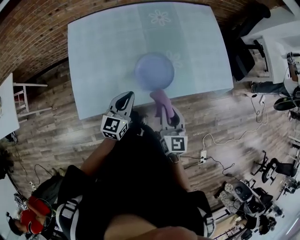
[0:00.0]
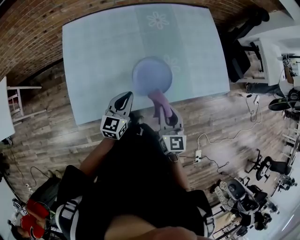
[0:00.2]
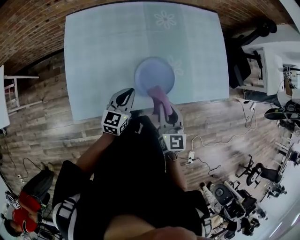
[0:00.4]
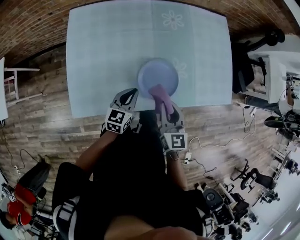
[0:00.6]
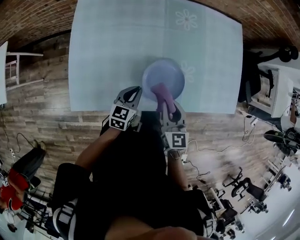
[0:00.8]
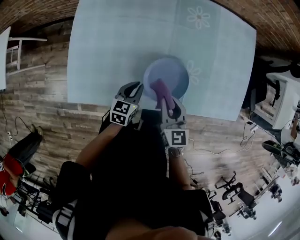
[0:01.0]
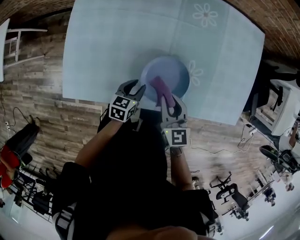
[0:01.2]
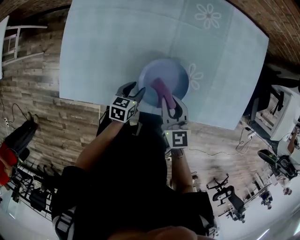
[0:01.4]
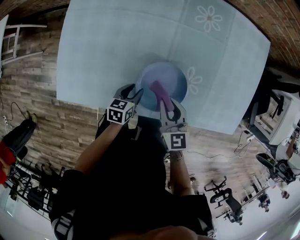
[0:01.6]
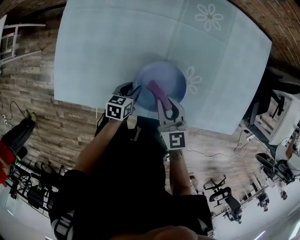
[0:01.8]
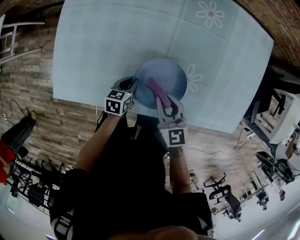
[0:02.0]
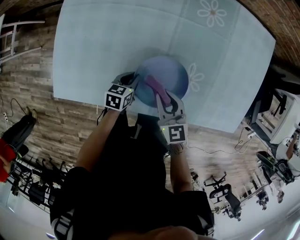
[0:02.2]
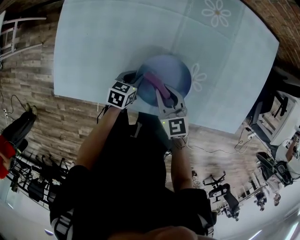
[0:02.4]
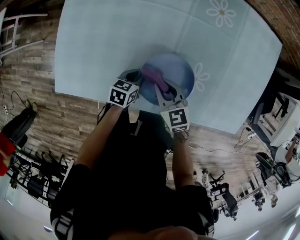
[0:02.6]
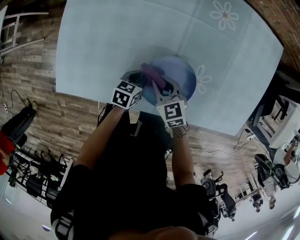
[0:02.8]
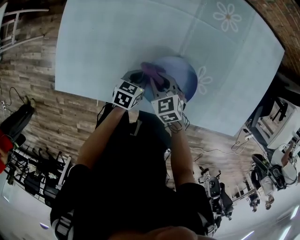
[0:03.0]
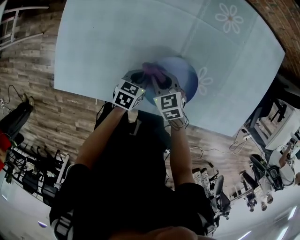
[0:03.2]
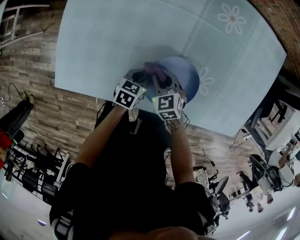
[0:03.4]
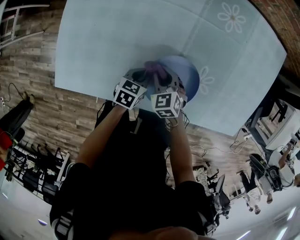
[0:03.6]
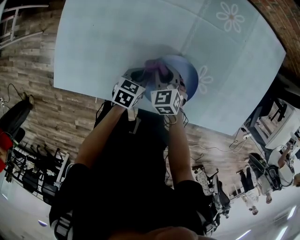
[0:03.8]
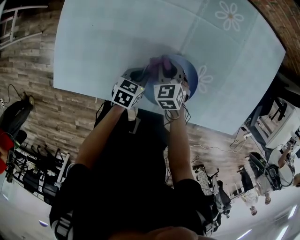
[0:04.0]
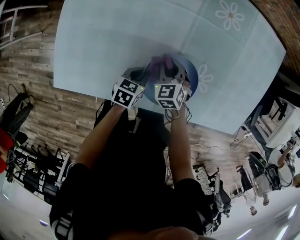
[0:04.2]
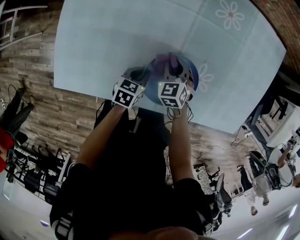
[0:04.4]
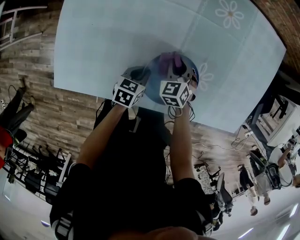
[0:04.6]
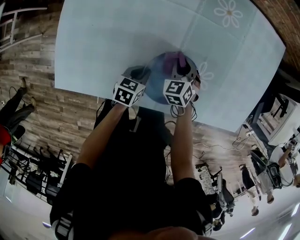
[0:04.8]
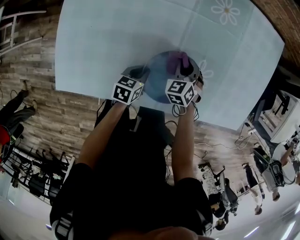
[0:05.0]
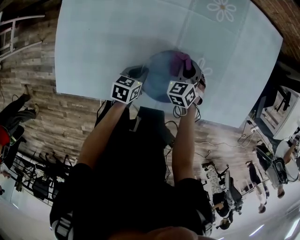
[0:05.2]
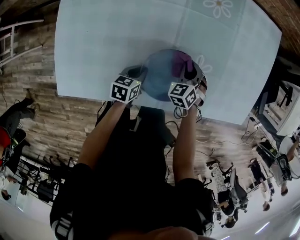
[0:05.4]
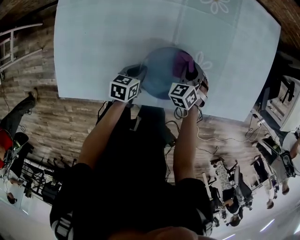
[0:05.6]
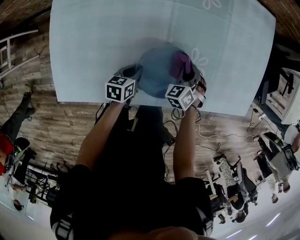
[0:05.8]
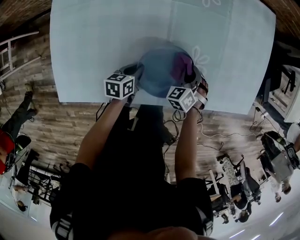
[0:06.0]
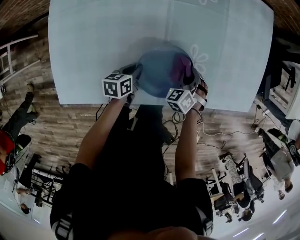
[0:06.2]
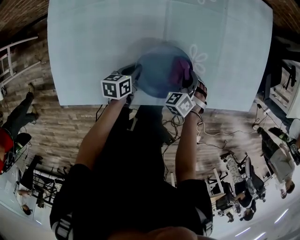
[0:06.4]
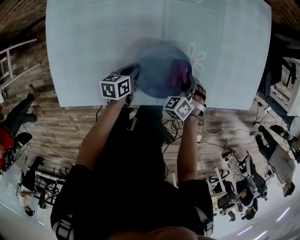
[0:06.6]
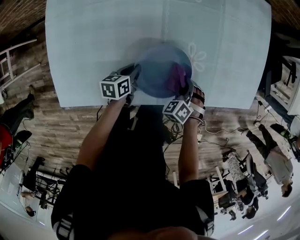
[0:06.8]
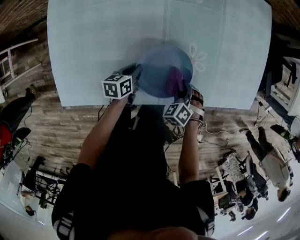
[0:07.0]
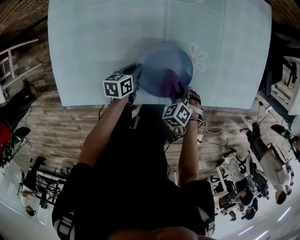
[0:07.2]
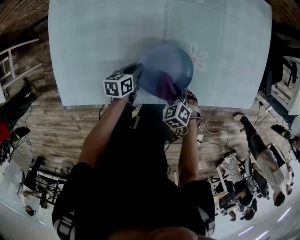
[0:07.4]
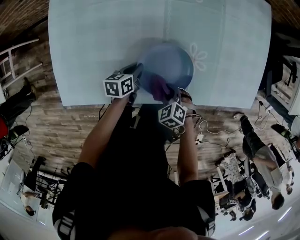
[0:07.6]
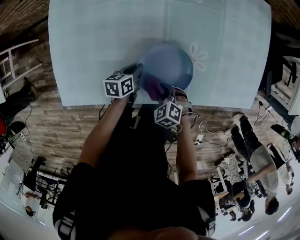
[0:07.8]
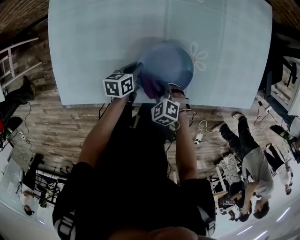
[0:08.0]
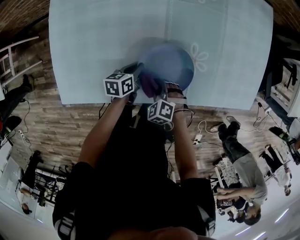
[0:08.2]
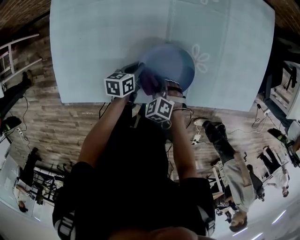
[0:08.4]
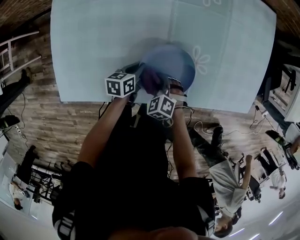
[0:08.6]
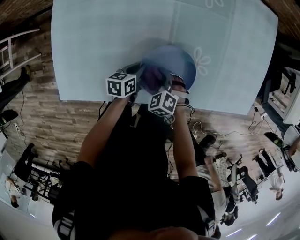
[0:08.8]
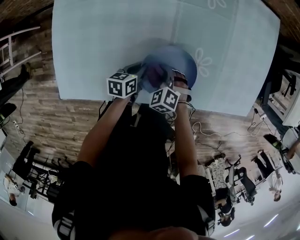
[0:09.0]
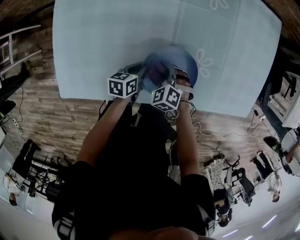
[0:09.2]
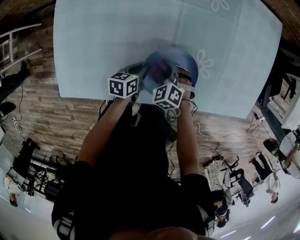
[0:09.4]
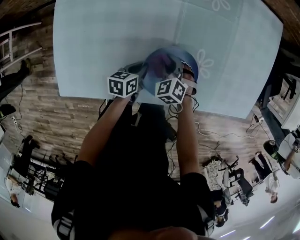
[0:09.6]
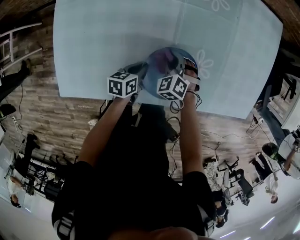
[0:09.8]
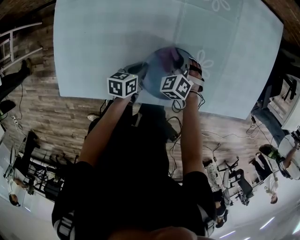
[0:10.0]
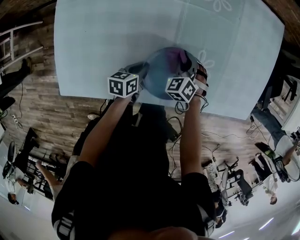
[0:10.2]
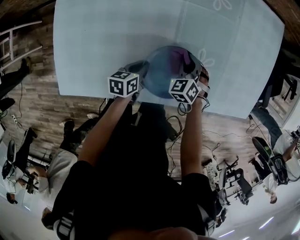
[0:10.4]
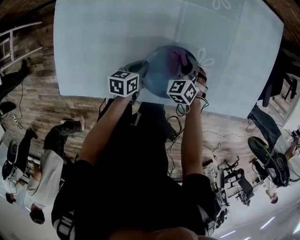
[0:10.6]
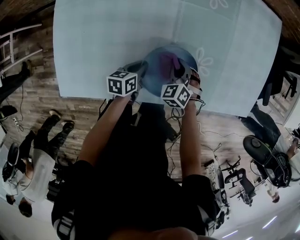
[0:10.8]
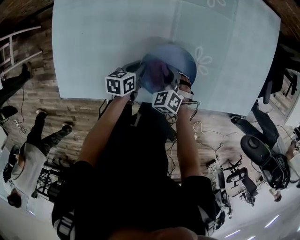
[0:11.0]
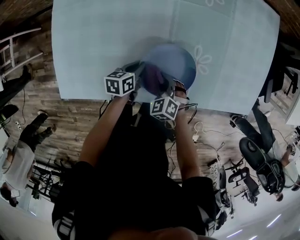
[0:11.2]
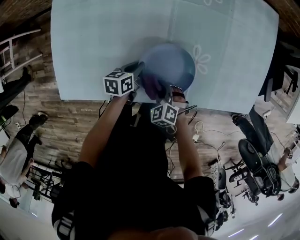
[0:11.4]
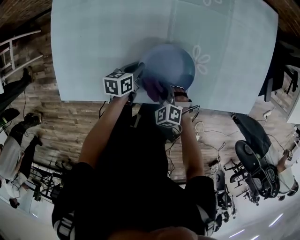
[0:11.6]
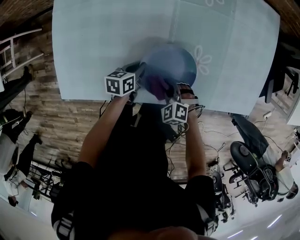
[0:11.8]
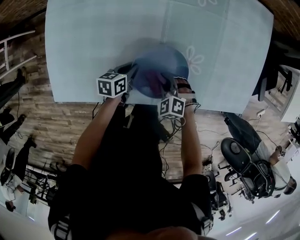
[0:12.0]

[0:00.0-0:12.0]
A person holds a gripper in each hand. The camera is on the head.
0:00.0 to 0:01.6: The right gripper goes some 25 cm forward and downward, and swivels roughly 30 degrees; the left gripper goes approximately 30 cm downward and forward, tilts its fingers roughly 30 degrees downward, and opens its fingers.
0:01.6 to 0:03.0: The right gripper is displaced downward and to the left by approximately 15 cm, and rotates approximately 40 degrees. Meanwhile the left gripper shifts by approximately 5 cm, and closes.
0:03.0 to 0:04.4: The right gripper goes roughly 10 cm forward, and changes its angle by roughly 20 degrees.
0:04.4 to 0:06.0: The right gripper moves to the right, approximately 15 cm, and swivels roughly 30 degrees.
0:06.0 to 0:07.6: The right gripper moves roughly 15 cm, and changes its angle by approximately 30 degrees.
0:07.6 to 0:09.0: The right gripper shifts about 10 cm forward and to the left.
0:09.0 to 0:10.4: The right gripper shifts roughly 10 cm forward and to the right.
0:10.4 to 0:12.0: The right gripper moves backward, some 10 cm, and rotates some 30 degrees.

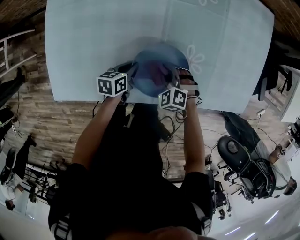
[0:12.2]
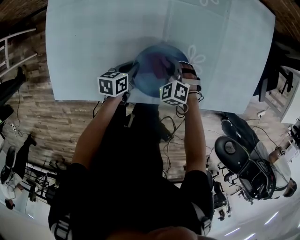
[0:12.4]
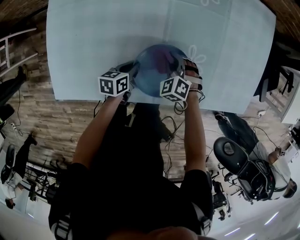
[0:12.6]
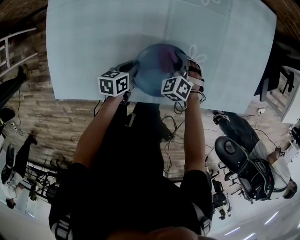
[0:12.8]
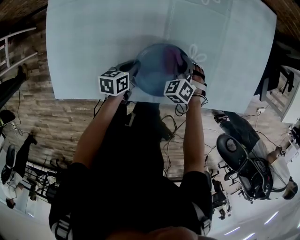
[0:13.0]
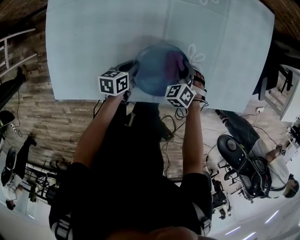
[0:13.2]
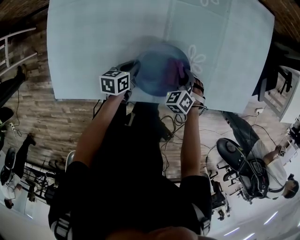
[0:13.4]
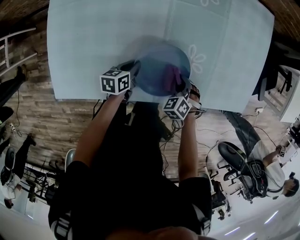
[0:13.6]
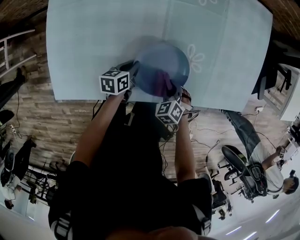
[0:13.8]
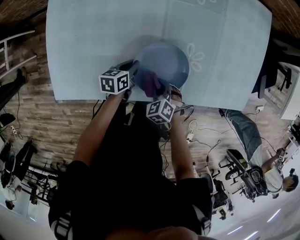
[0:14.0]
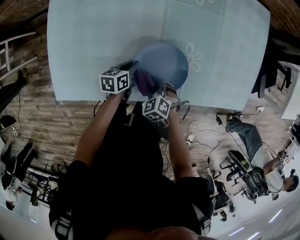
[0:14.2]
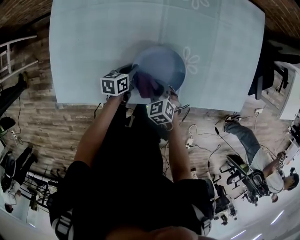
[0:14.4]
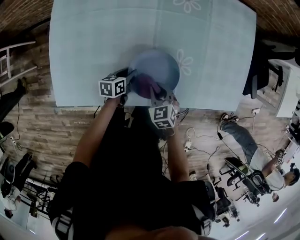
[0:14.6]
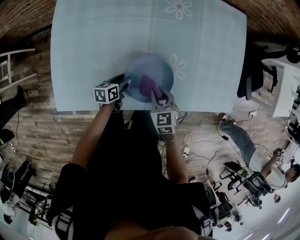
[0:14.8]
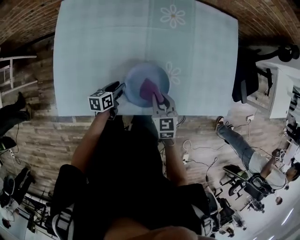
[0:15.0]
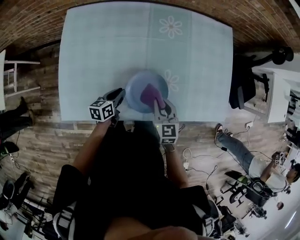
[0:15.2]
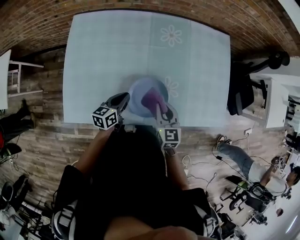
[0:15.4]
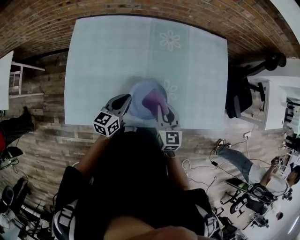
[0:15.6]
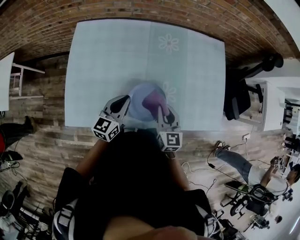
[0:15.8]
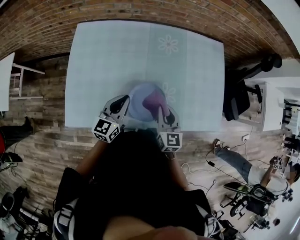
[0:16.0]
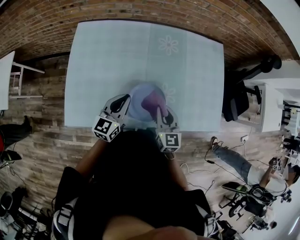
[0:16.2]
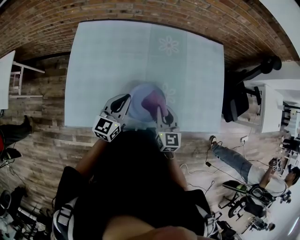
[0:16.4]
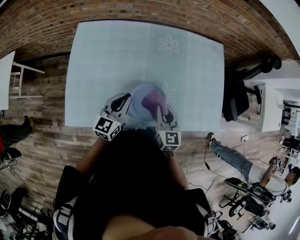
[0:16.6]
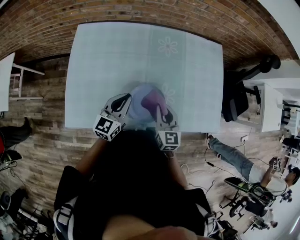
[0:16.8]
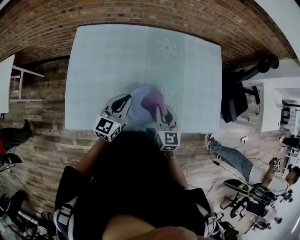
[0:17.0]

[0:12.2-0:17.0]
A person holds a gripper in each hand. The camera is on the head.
0:12.2 to 0:13.8: The right gripper shifts about 10 cm to the right and backward, and rotates some 30 degrees.
0:13.8 to 0:15.4: The grippers both shift upward by some 20 cm. The right gripper points its fingers some 40 degrees further upward. Meanwhile the left gripper turns by some 20 degrees, and opens, then closes once more.
0:15.4 to 0:17.0: The left gripper is displaced upward by about 15 cm, and swivels roughly 30 degrees; the right gripper moves upward, roughly 5 cm.

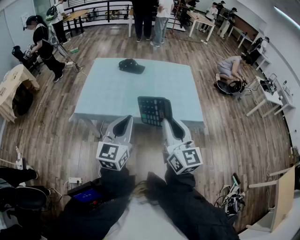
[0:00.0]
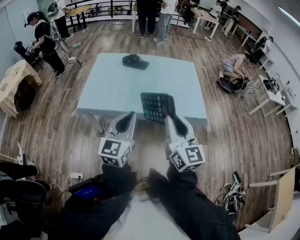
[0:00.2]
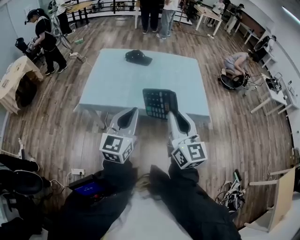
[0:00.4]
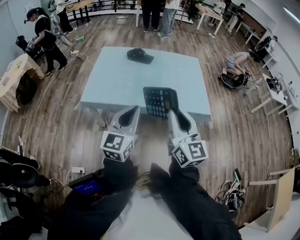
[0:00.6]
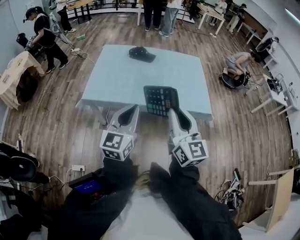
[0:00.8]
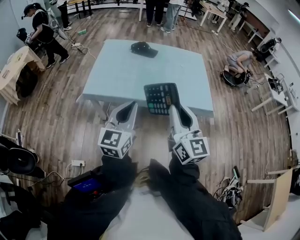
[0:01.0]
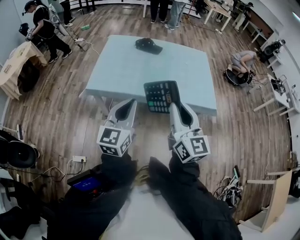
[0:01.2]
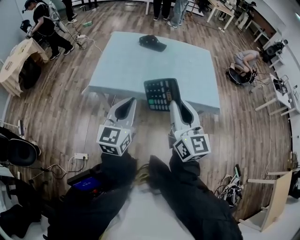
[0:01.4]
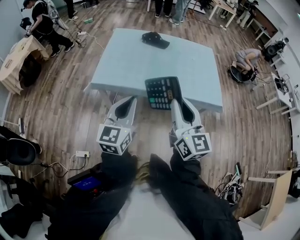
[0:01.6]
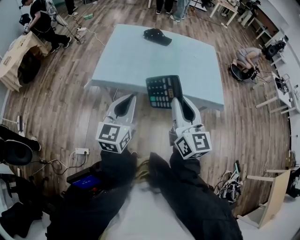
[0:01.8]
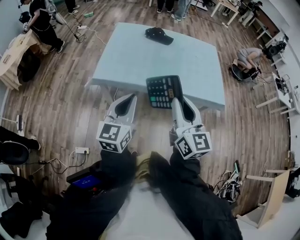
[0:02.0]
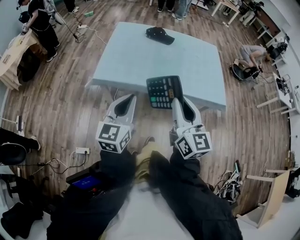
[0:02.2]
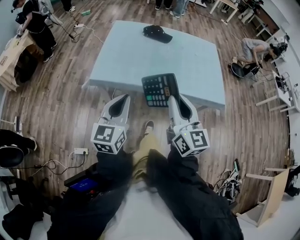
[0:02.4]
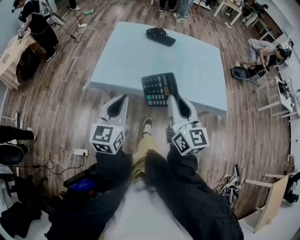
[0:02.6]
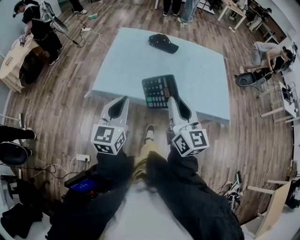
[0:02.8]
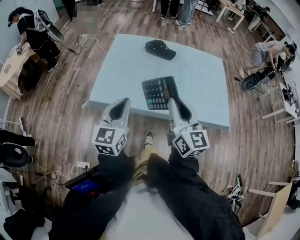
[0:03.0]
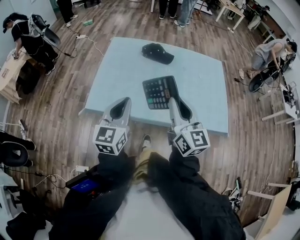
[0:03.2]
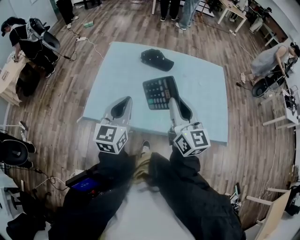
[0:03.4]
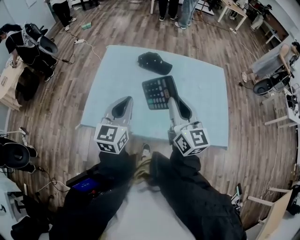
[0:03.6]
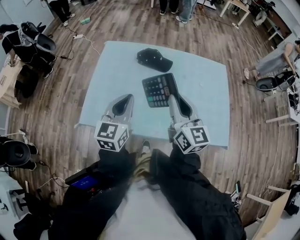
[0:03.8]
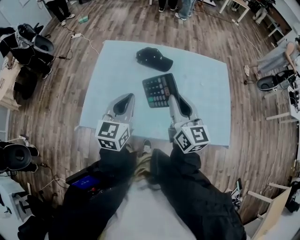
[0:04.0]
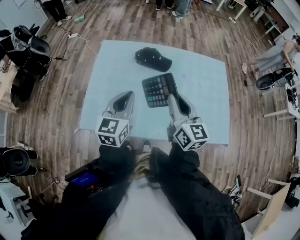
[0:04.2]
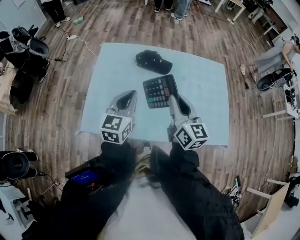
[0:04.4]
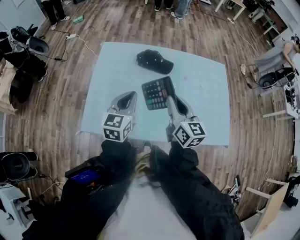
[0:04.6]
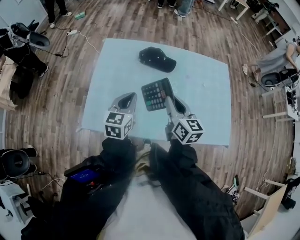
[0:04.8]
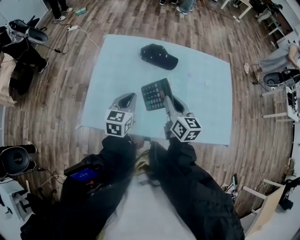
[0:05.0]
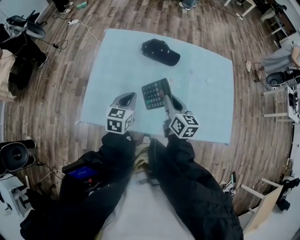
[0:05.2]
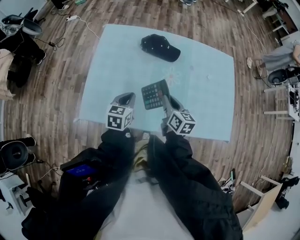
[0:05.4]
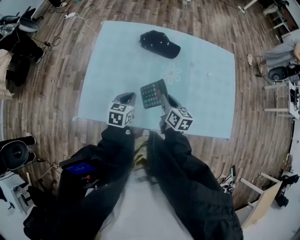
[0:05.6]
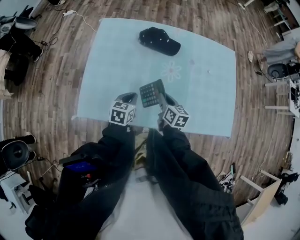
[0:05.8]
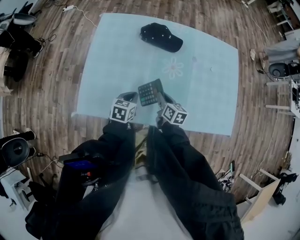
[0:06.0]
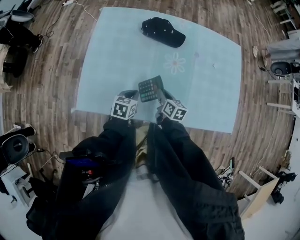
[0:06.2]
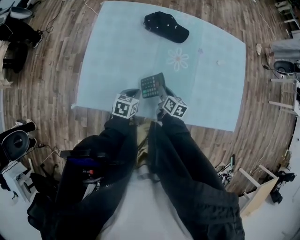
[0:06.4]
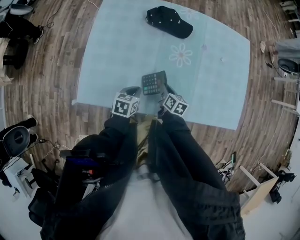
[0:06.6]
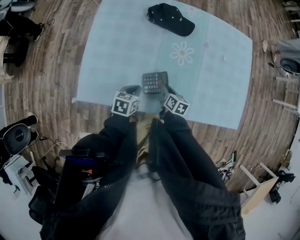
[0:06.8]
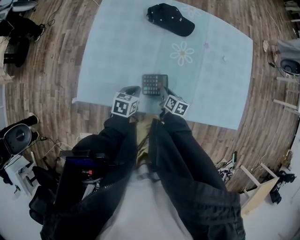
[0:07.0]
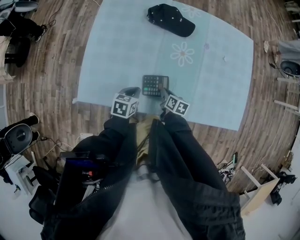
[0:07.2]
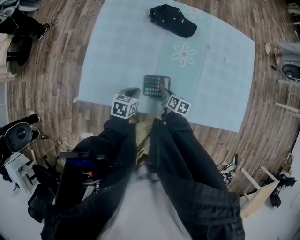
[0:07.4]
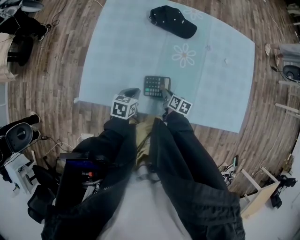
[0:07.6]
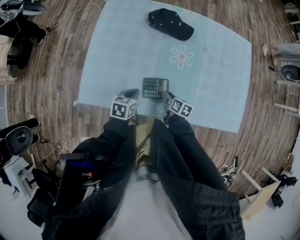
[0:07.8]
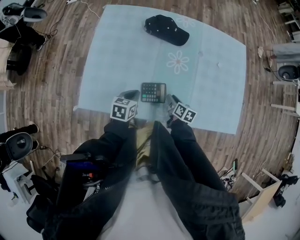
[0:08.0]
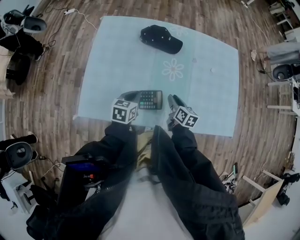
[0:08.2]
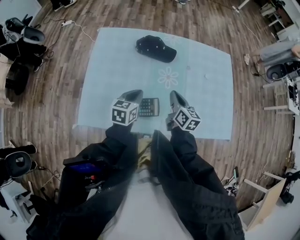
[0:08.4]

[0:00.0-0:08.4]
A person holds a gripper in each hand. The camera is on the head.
0:00.0 to 0:01.4: Both grippers move to the left, approximately 10 cm.
0:01.4 to 0:02.8: The right gripper goes about 15 cm forward. The left gripper heads forward and to the left, covering roughly 15 cm.
0:02.8 to 0:04.2: Both grippers travel together forward, about 30 cm.
0:04.2 to 0:05.6: Both grippers move downward, roughly 20 cm. The right gripper swivels approximately 30 degrees. The left gripper rotates some 30 degrees.
0:05.6 to 0:07.0: The right gripper heads downward, covering some 20 cm, and turns by about 20 degrees. Meanwhile the left gripper shifts roughly 10 cm downward.
0:07.0 to 0:08.4: The right gripper goes approximately 20 cm upward, and turns by approximately 30 degrees. Meanwhile the left gripper travels upward and forward by about 15 cm, and rotates roughly 20 degrees.
